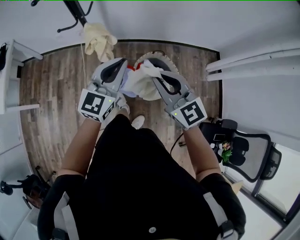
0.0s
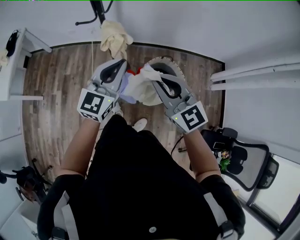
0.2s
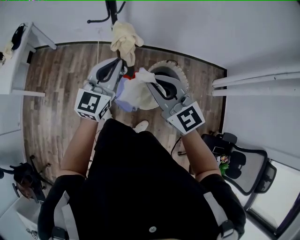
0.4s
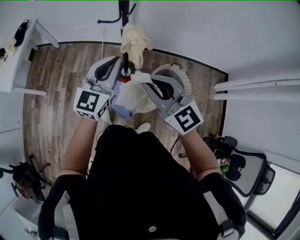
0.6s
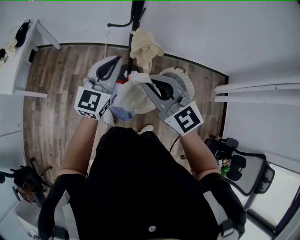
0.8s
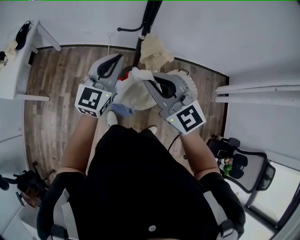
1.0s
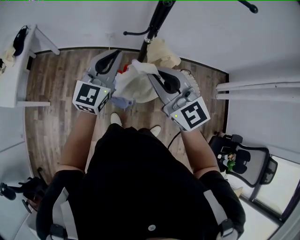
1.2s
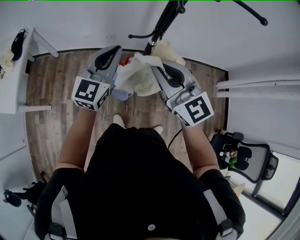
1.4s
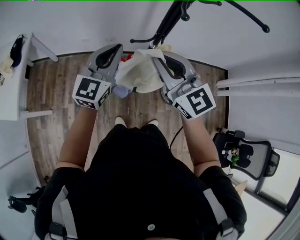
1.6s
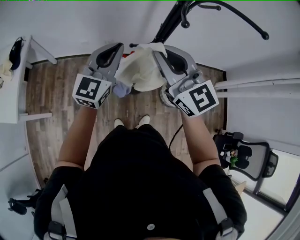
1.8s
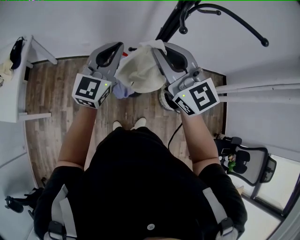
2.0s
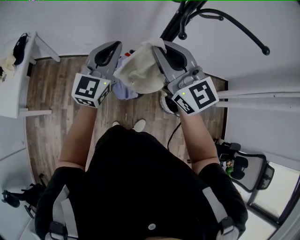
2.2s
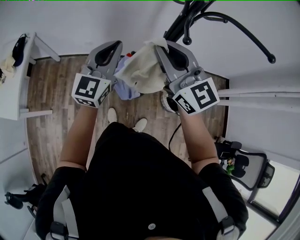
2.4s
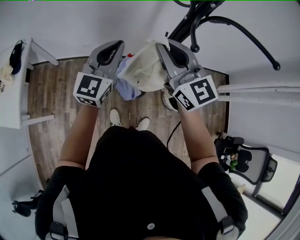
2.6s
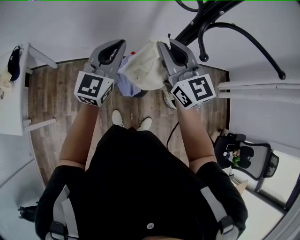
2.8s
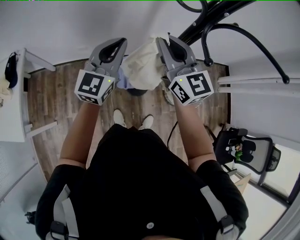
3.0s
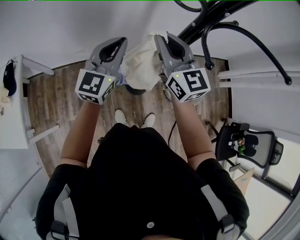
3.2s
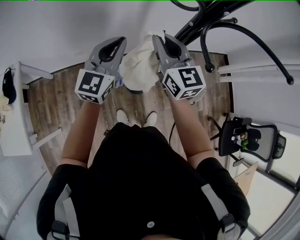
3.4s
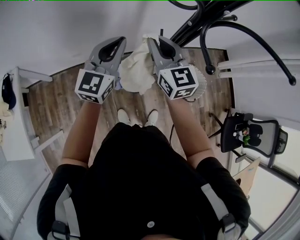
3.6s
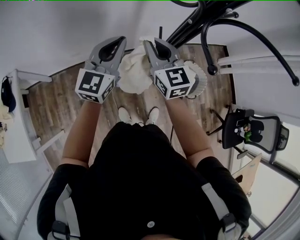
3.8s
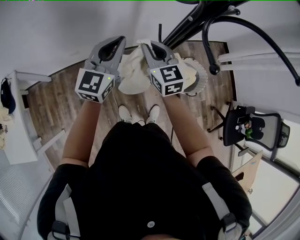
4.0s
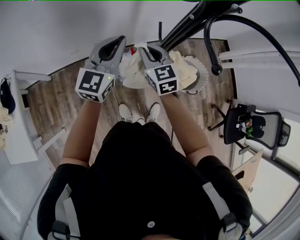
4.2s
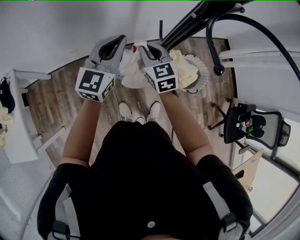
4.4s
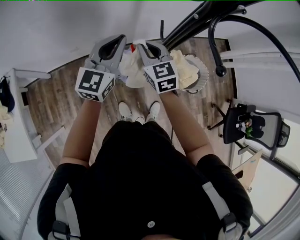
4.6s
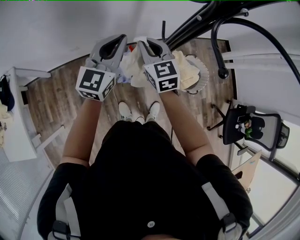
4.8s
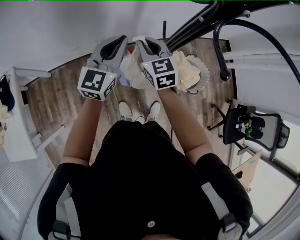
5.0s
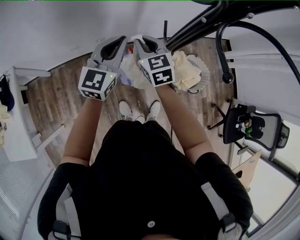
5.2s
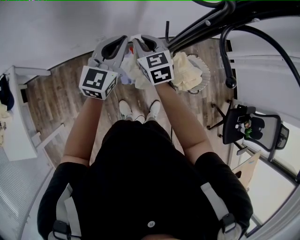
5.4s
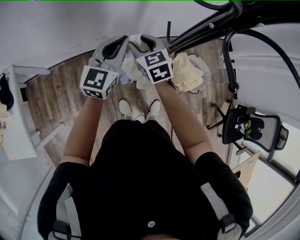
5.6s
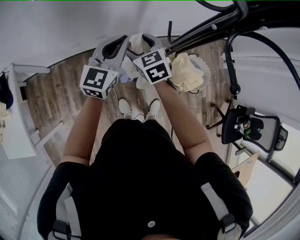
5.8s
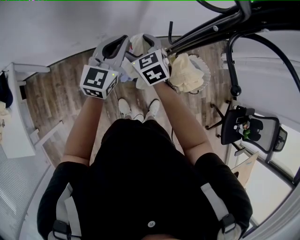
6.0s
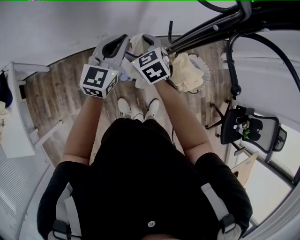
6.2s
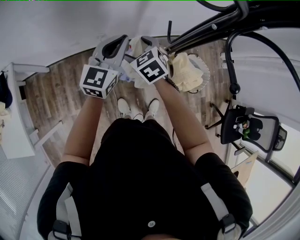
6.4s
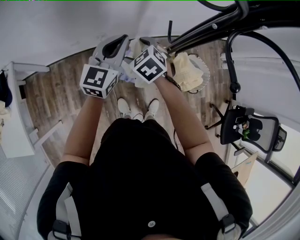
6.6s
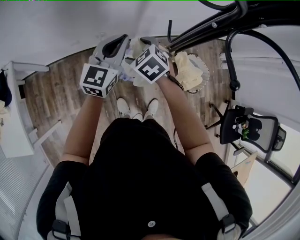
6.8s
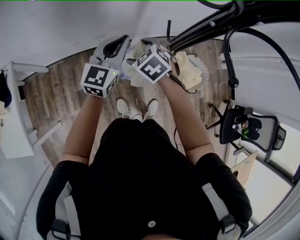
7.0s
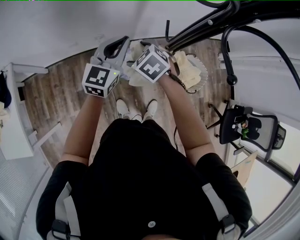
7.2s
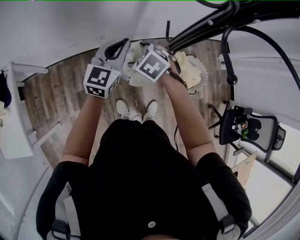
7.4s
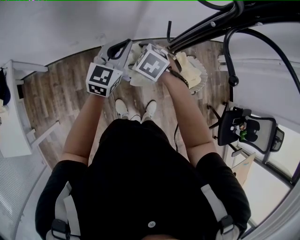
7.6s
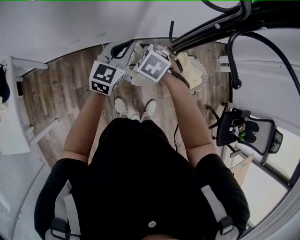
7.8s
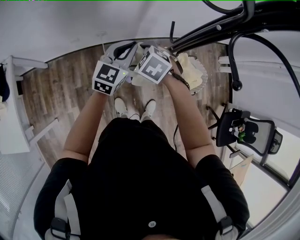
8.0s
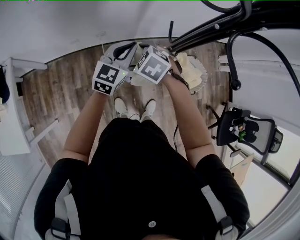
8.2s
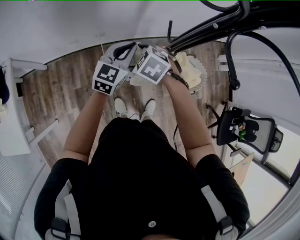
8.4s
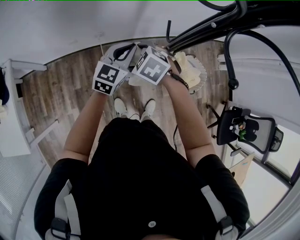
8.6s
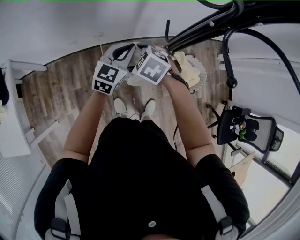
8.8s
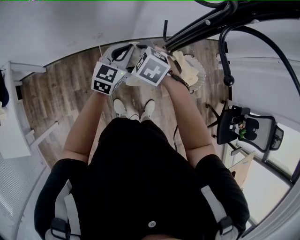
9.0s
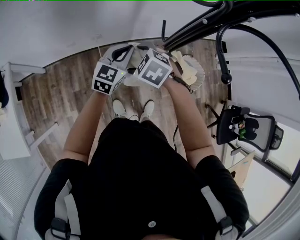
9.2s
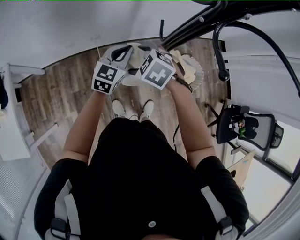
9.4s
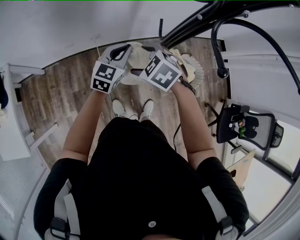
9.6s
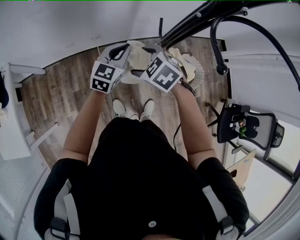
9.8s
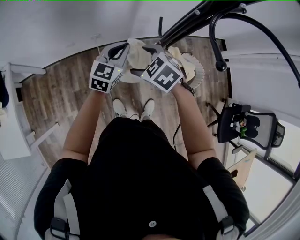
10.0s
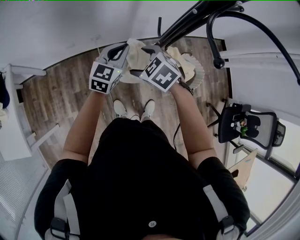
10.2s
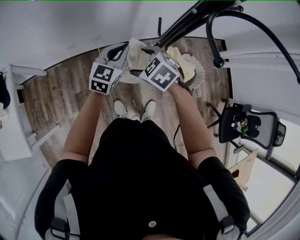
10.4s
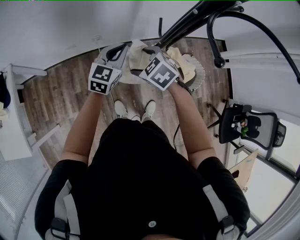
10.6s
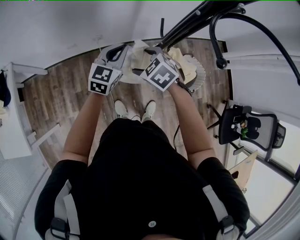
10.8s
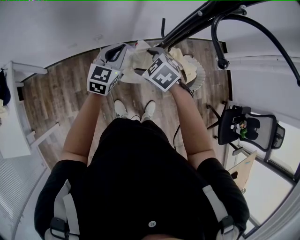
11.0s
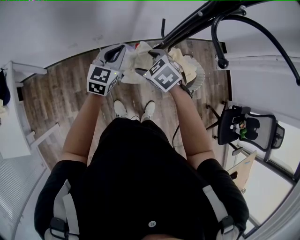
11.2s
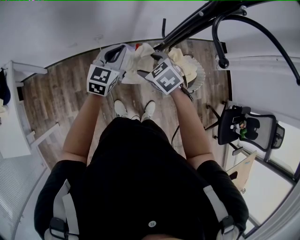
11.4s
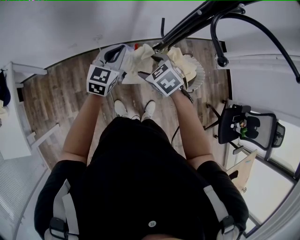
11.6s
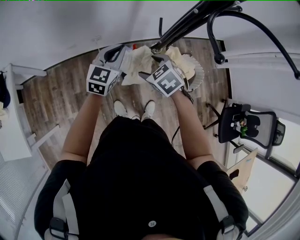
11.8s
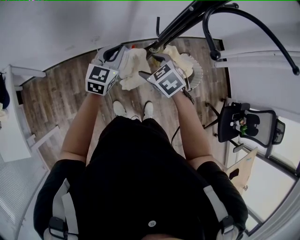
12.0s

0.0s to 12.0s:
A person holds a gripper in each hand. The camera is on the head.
0.0s to 1.6s: The two grippers travel together, to the left and forward, about 40 cm.
1.6s to 3.0s: The two grippers go roughly 15 cm forward.
3.0s to 4.4s: The left gripper heads downward and forward, covering approximately 10 cm, while the right gripper is displaced downward by some 20 cm, and rotates some 30 degrees.
4.4s to 6.0s: The left gripper shifts by roughly 5 cm, while the right gripper moves to the left, some 5 cm, and opens.
6.0s to 7.6s: The right gripper is displaced backward by about 5 cm, and swivels roughly 30 degrees.
7.6s to 9.0s: The left gripper shifts by approximately 5 cm.
9.0s to 10.4s: The grippers stay close to where they were, moving slightly.
10.4s to 12.0s: The grippers move only a little.

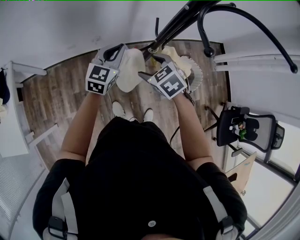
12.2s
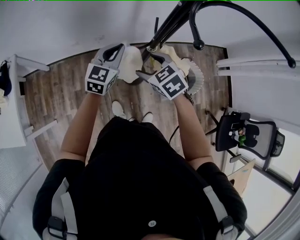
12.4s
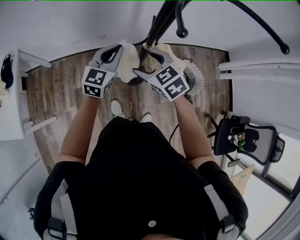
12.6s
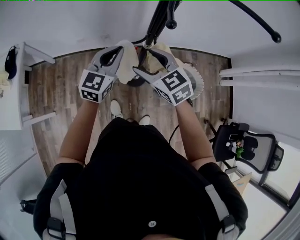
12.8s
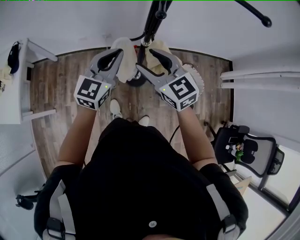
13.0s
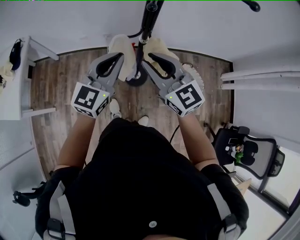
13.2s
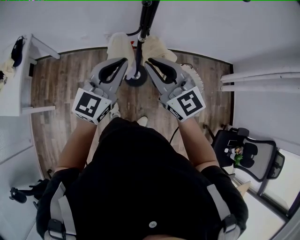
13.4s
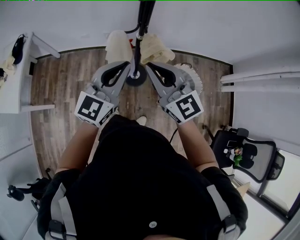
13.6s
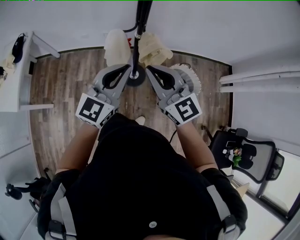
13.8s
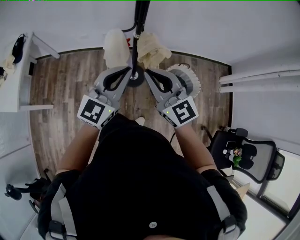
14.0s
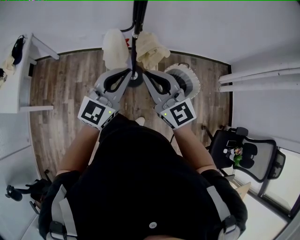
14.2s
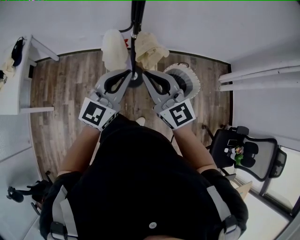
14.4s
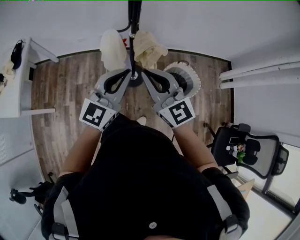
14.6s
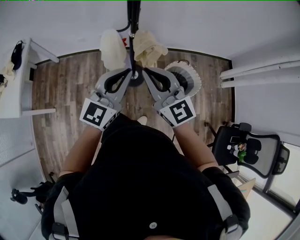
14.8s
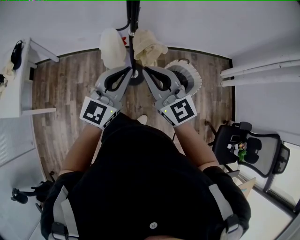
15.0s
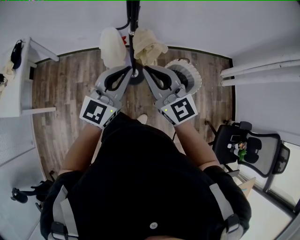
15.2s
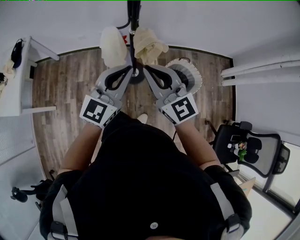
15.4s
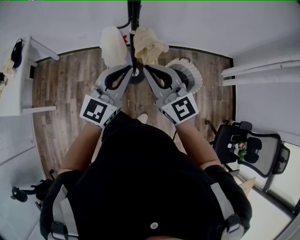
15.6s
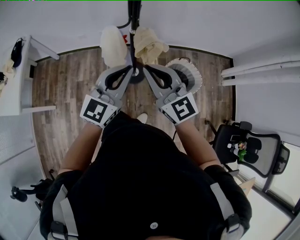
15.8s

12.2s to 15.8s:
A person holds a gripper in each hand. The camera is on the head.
12.2s to 14.0s: Both grippers travel together backward, upward and to the right, about 30 cm. The right gripper tips its fingers upward by approximately 60 degrees, and closes its fingers.
14.0s to 15.8s: The grippers make only small movements.

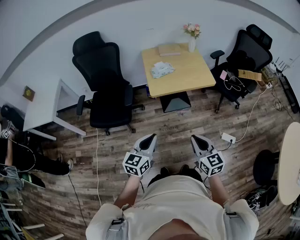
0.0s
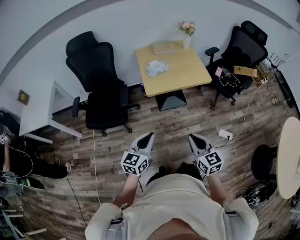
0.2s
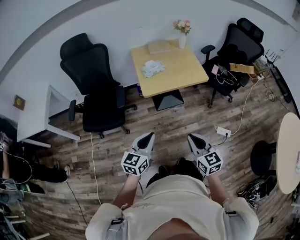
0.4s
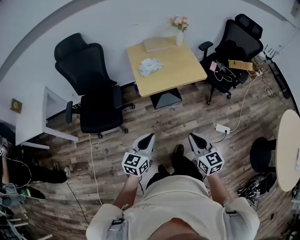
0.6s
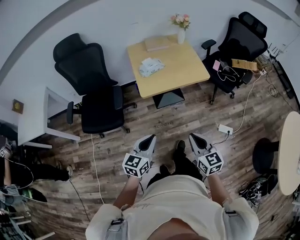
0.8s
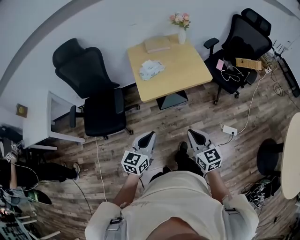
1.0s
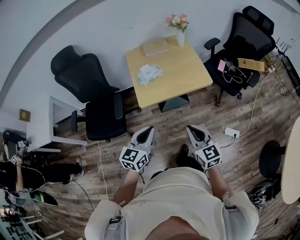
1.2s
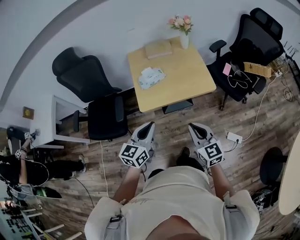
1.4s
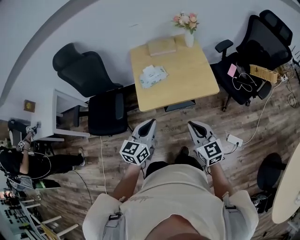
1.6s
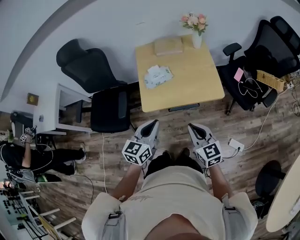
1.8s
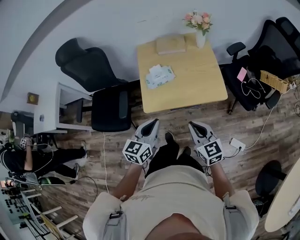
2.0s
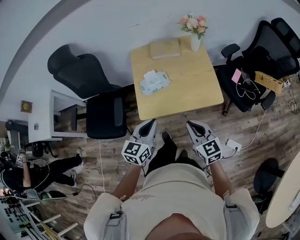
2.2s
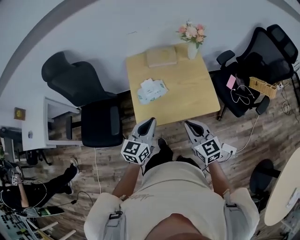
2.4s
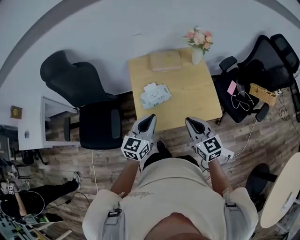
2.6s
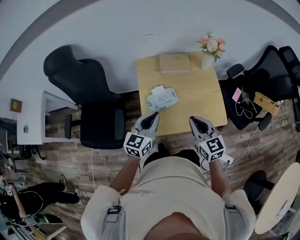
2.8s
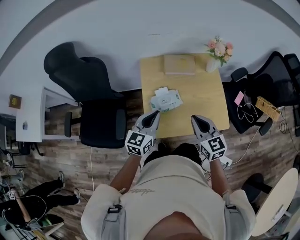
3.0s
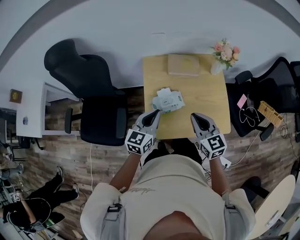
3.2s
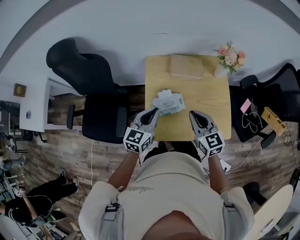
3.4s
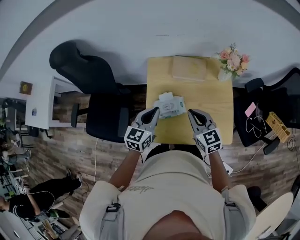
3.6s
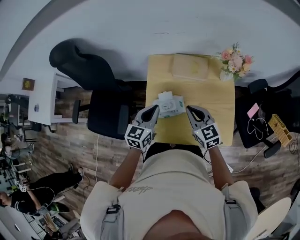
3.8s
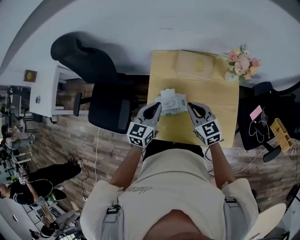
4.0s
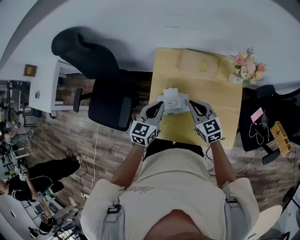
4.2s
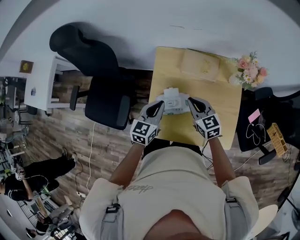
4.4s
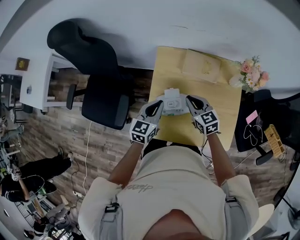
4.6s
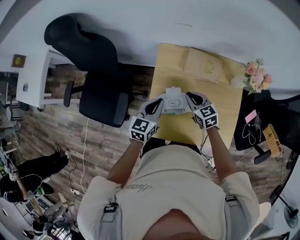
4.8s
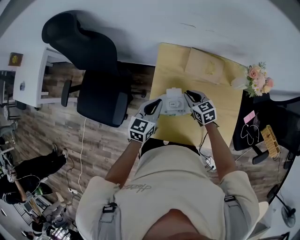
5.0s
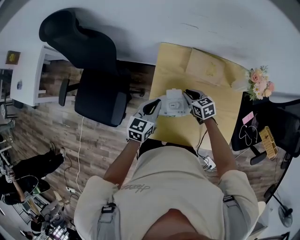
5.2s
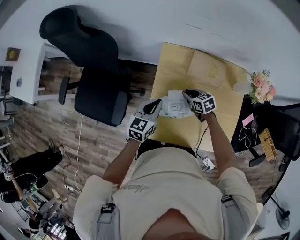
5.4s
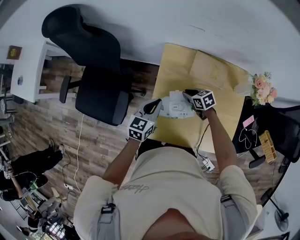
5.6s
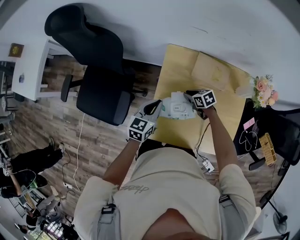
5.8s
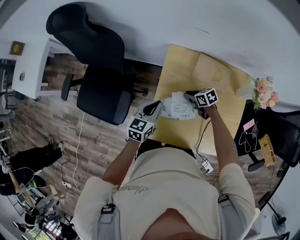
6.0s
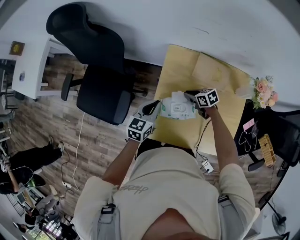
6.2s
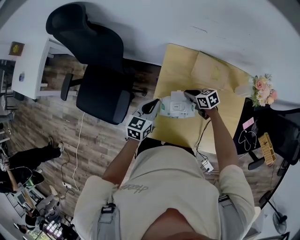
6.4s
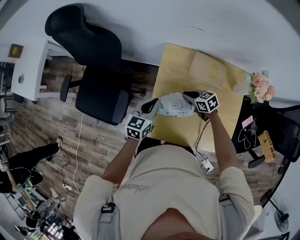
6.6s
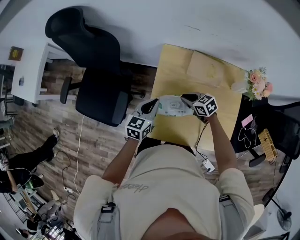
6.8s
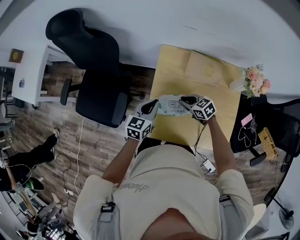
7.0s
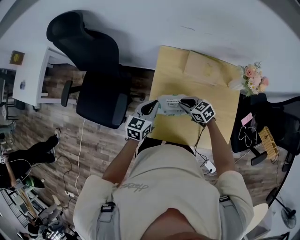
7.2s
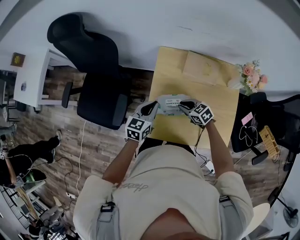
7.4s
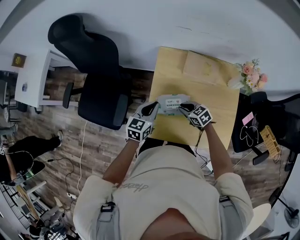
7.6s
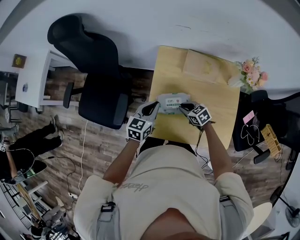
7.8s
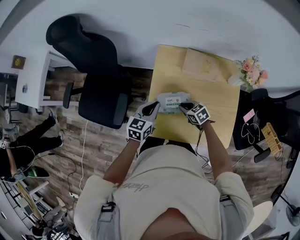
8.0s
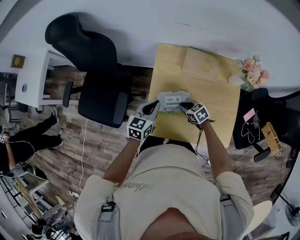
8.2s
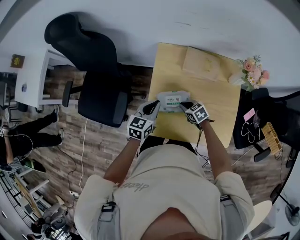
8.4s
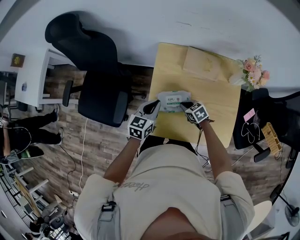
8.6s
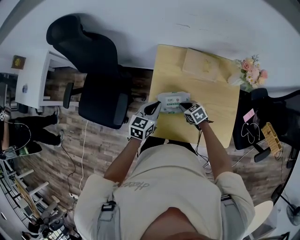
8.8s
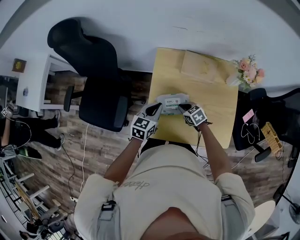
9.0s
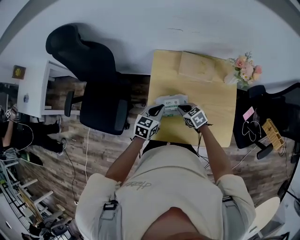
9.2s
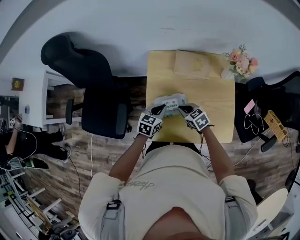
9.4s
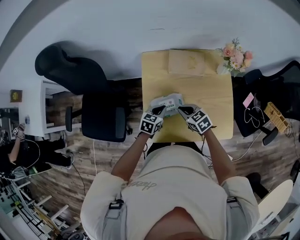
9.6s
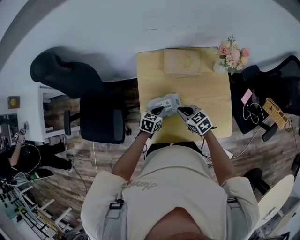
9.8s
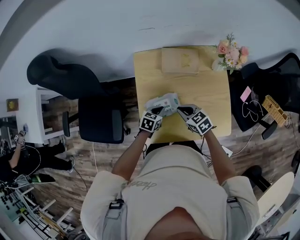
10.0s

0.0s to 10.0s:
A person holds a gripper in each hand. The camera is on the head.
0.0s to 1.4s: Both grippers travel together forward, approximately 25 cm.
1.4s to 2.8s: Both grippers travel together forward, roughly 30 cm.
2.8s to 4.2s: Both grippers move forward and downward, some 20 cm. The right gripper swivels roughly 20 degrees.
4.2s to 5.8s: The left gripper travels to the left, downward and forward by roughly 10 cm, while the right gripper is displaced downward and forward by about 25 cm, and swivels approximately 40 degrees.
5.8s to 7.2s: The right gripper shifts roughly 10 cm upward and backward.
7.2s to 8.6s: The right gripper travels downward by approximately 5 cm.
8.6s to 10.0s: The right gripper heads upward, covering roughly 10 cm. Meanwhile the left gripper moves downward and to the right, about 15 cm, and rotates roughly 30 degrees.
